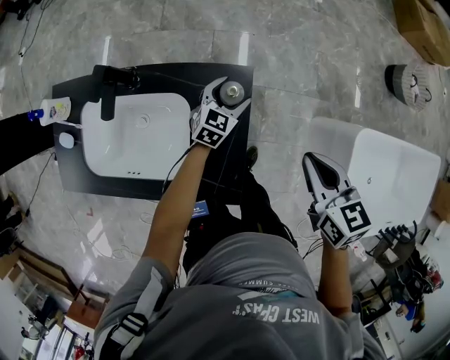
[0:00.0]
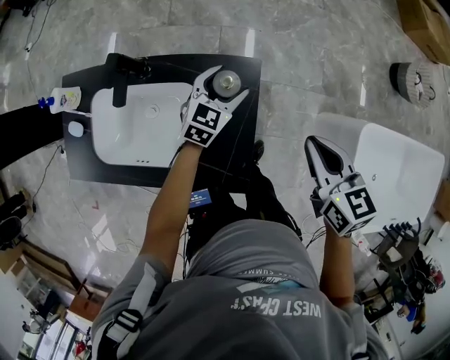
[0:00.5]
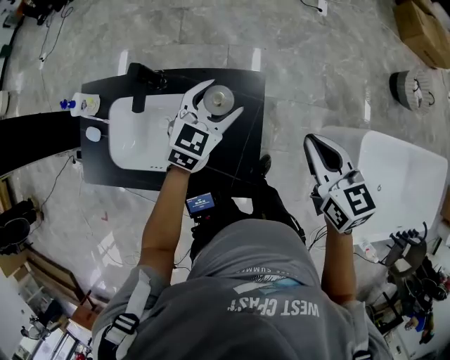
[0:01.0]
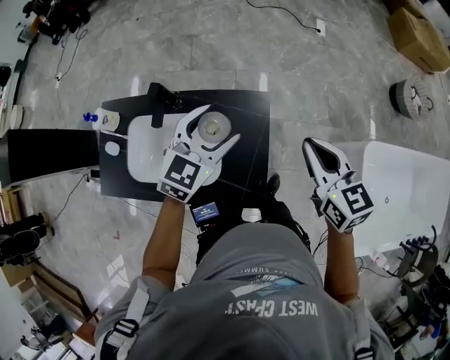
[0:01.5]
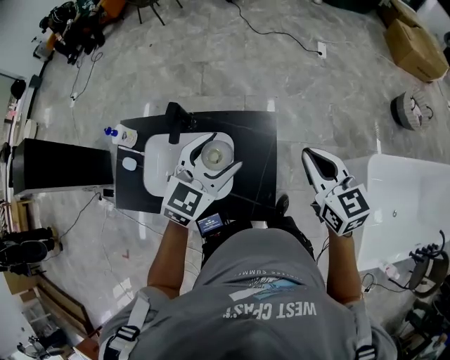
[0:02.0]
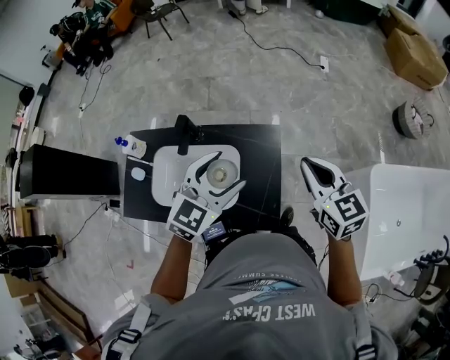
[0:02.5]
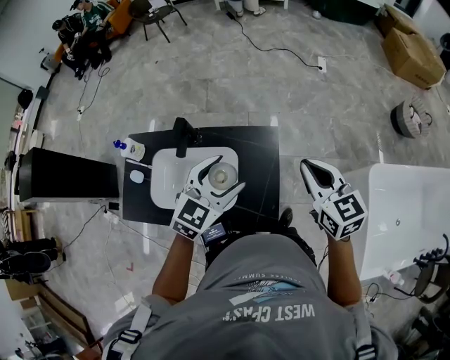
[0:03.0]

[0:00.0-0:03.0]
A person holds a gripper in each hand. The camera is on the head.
0:00.0 to 0:01.5: The right gripper moves upward and to the left, roughly 10 cm; the left gripper travels upward by some 25 cm.
0:01.5 to 0:03.0: The left gripper travels backward by some 5 cm.

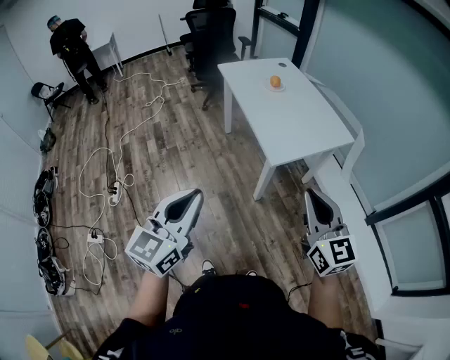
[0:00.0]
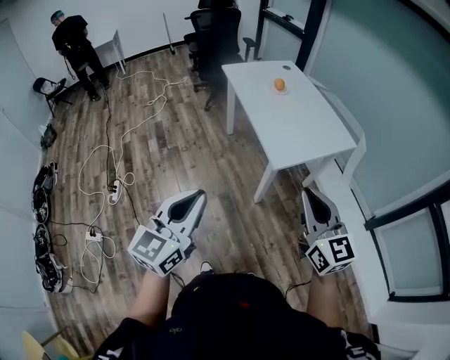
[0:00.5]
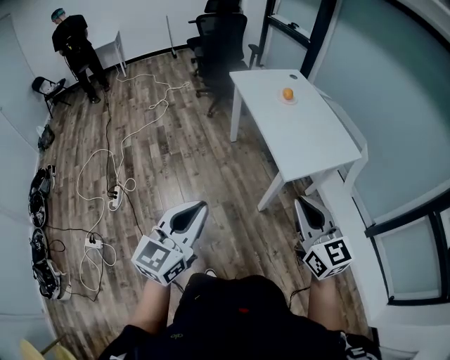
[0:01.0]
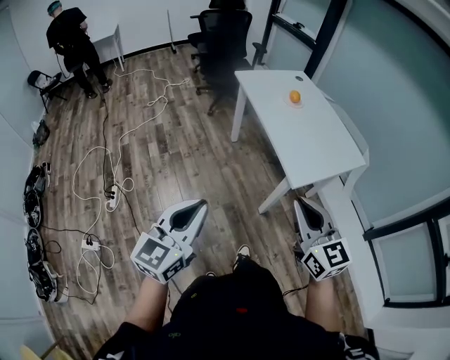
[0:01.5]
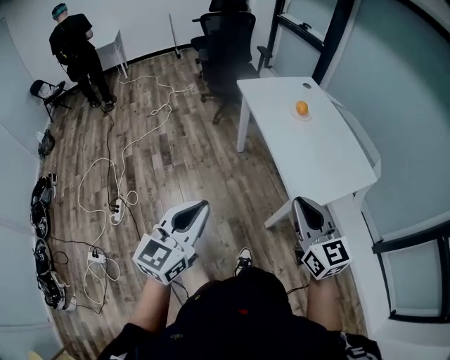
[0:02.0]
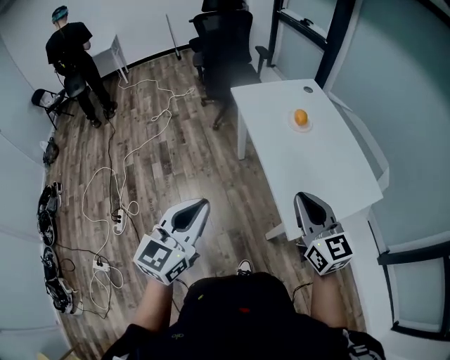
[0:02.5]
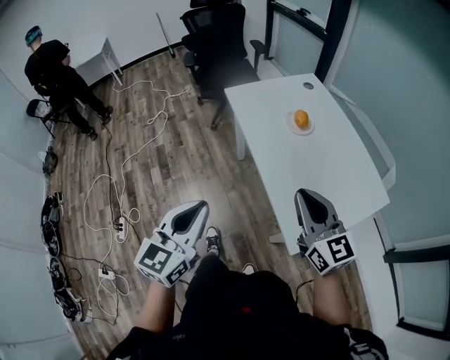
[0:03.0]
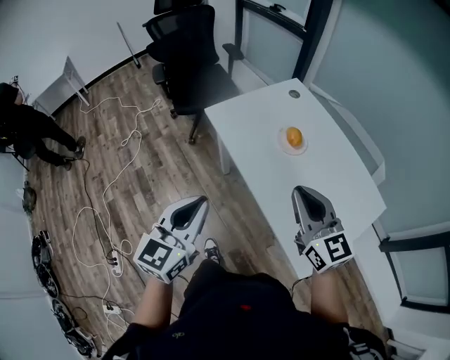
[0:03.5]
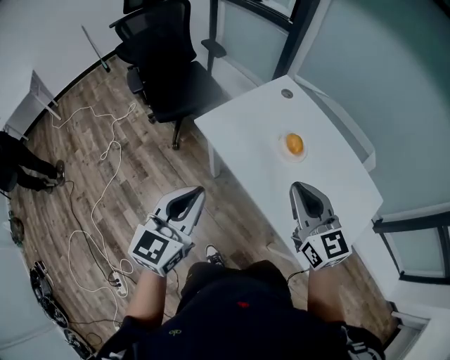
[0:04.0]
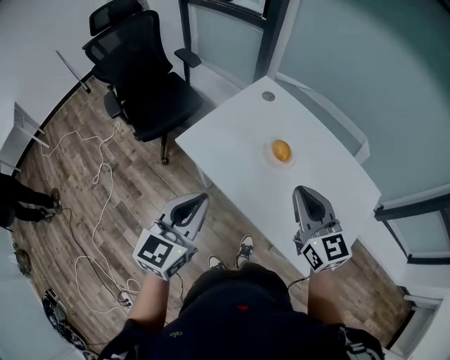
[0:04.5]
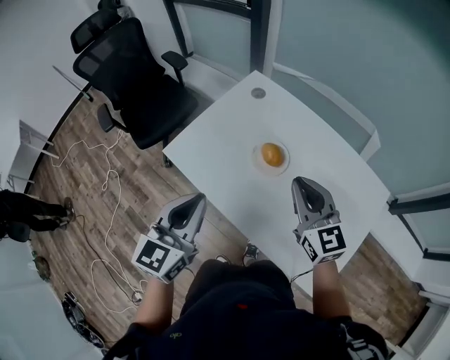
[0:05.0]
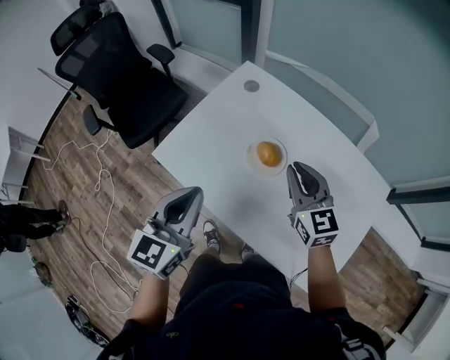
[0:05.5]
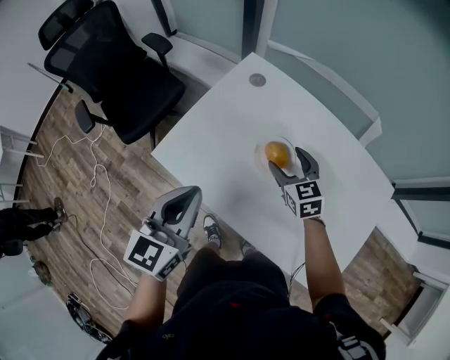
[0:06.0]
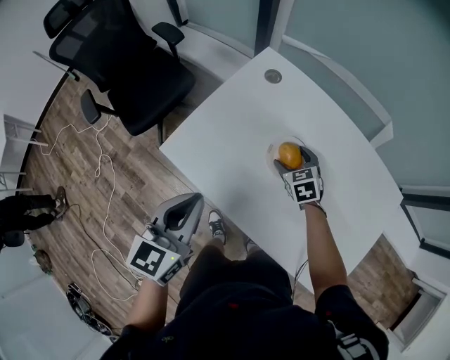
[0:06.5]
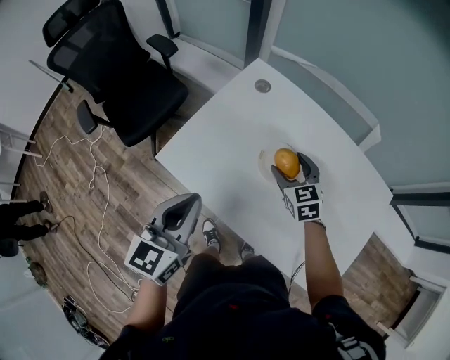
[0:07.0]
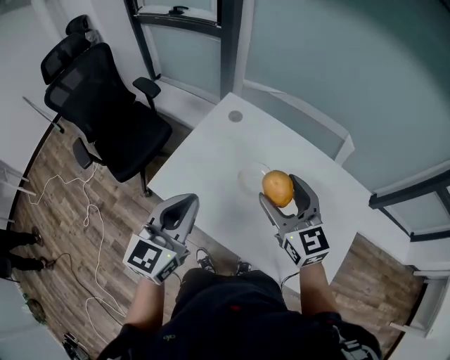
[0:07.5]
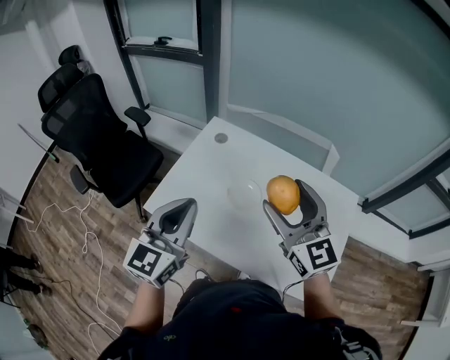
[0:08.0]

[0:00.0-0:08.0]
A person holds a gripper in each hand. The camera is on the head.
0:00.0 to 0:02.0: The grippers both shift forward and to the left by about 25 cm.
0:02.0 to 0:04.0: The pair of grippers is taken forward, about 60 cm.
0:04.0 to 0:06.0: The left gripper heads forward, covering about 25 cm; the right gripper is displaced forward and downward by roughly 40 cm, rotates some 30 degrees, and opens its fingers.
0:06.0 to 0:08.0: The left gripper shifts some 15 cm upward; the right gripper moves upward and backward, some 35 cm, and angles its fingers upward, by about 30 degrees.

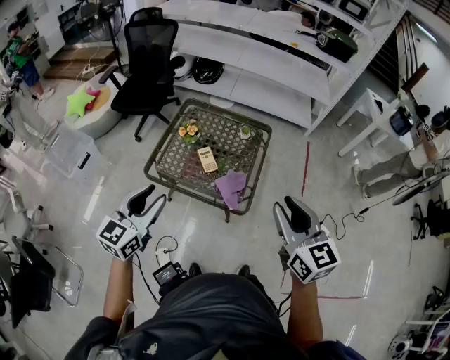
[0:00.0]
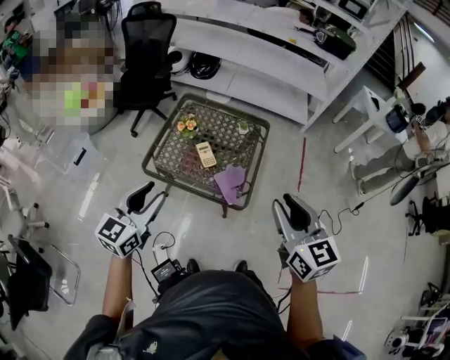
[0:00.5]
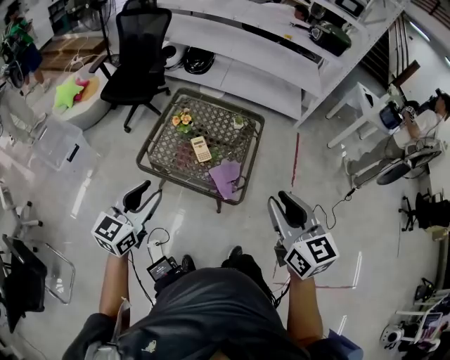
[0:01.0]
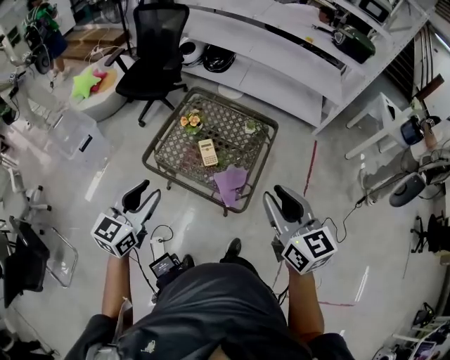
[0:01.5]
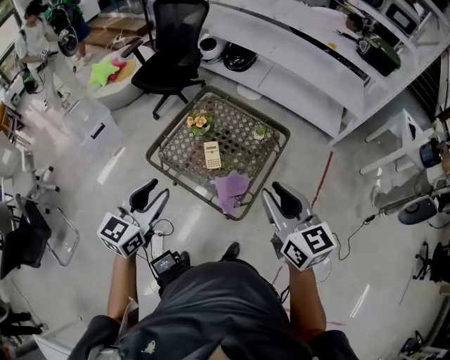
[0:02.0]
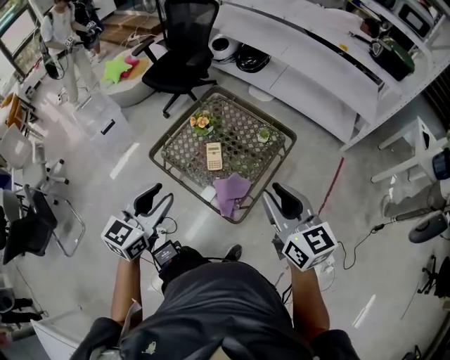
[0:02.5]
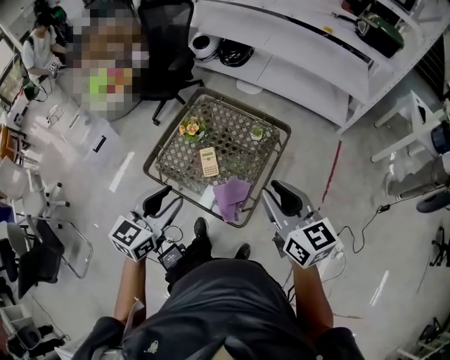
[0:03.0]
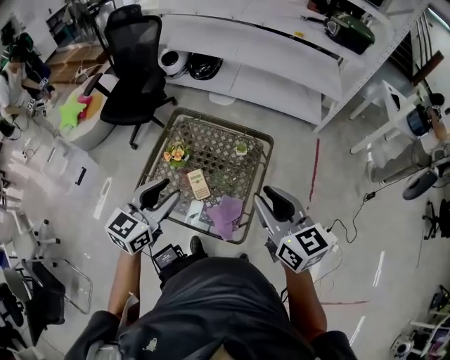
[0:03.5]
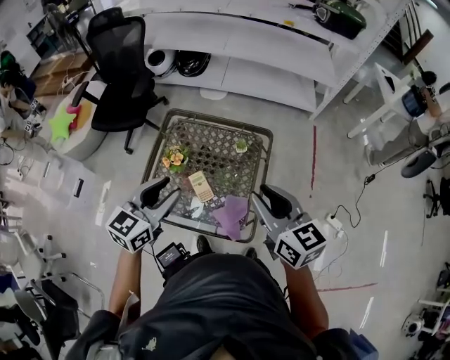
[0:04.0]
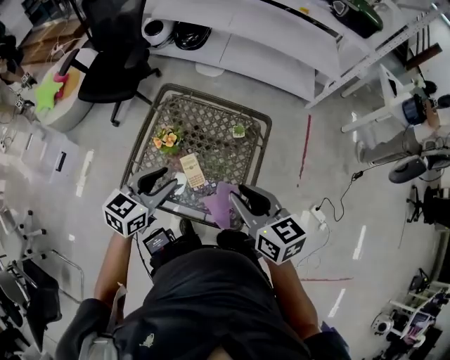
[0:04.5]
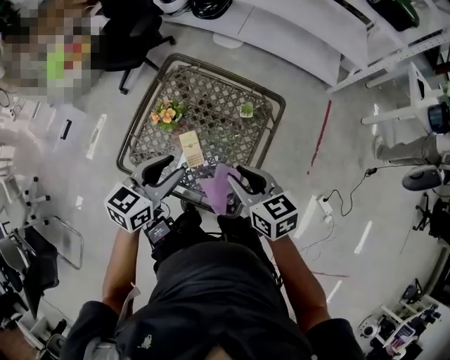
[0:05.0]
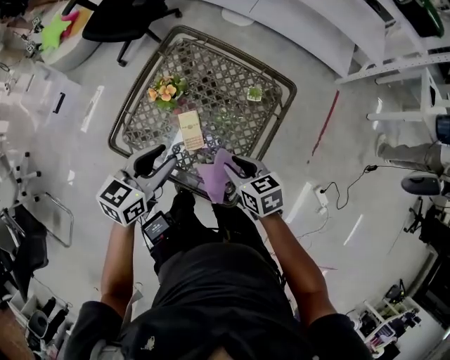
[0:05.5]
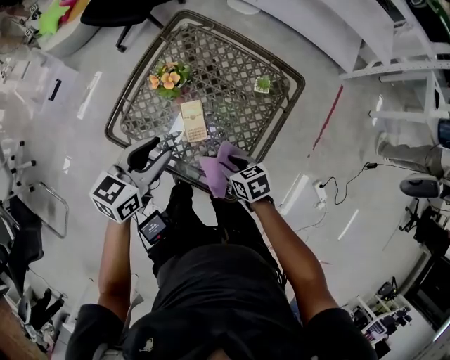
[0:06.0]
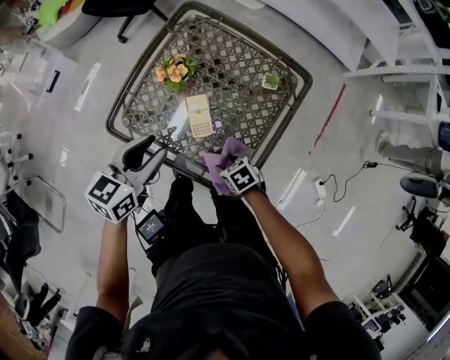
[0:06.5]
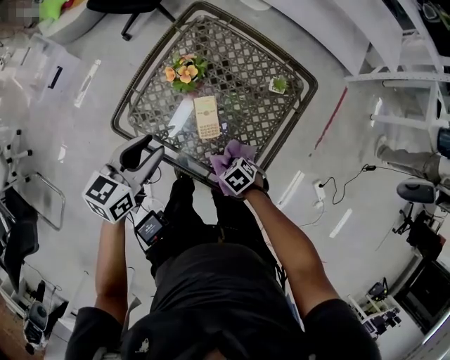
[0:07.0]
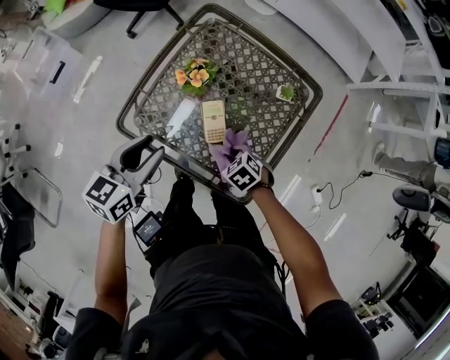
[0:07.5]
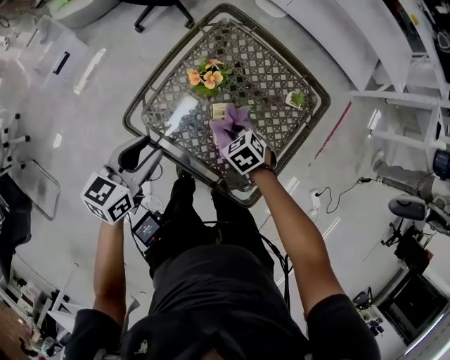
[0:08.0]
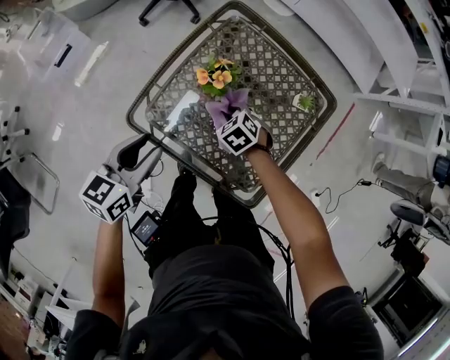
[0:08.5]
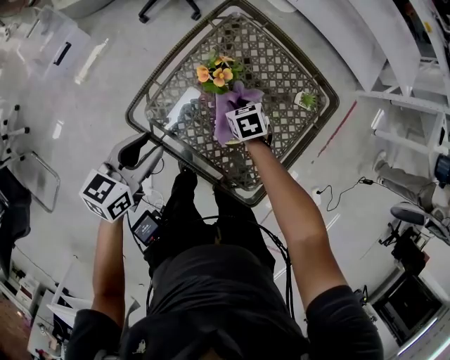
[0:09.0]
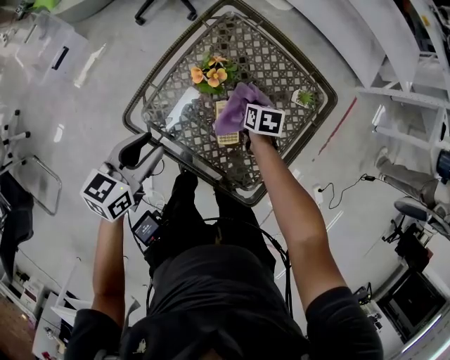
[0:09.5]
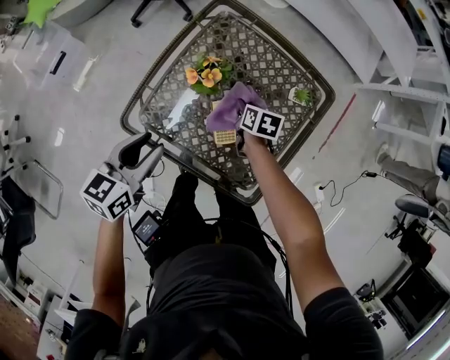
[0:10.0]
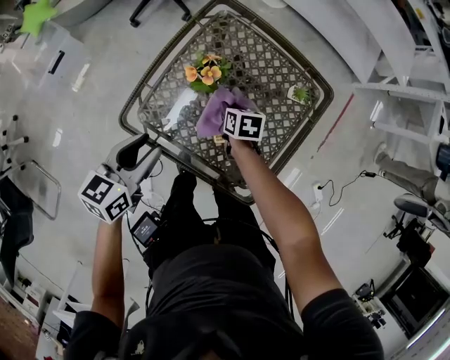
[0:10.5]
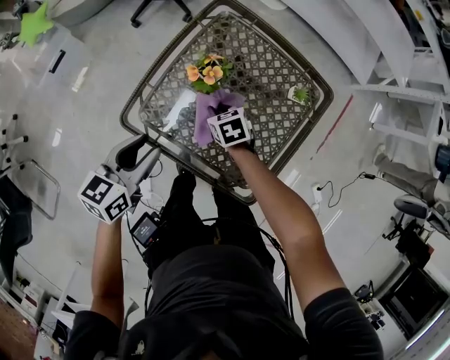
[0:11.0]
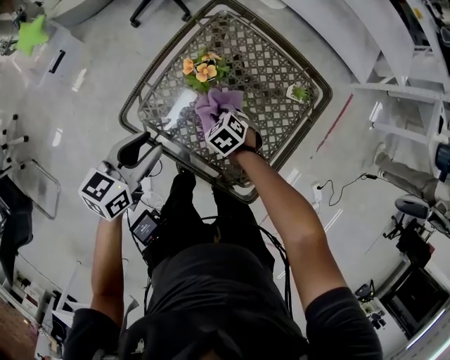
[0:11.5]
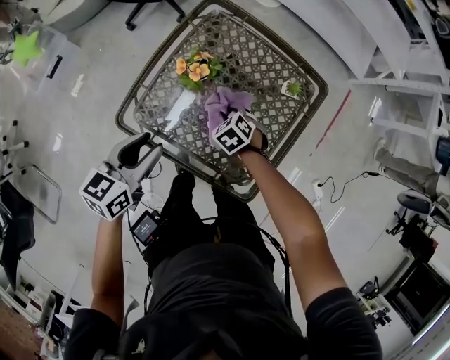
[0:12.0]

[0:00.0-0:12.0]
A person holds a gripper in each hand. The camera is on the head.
0:00.0 to 0:02.0: The left gripper is displaced to the right and forward by about 10 cm, while the right gripper goes approximately 15 cm forward.
0:02.0 to 0:04.0: The right gripper shifts approximately 15 cm forward, while the left gripper heads forward, covering approximately 20 cm, and changes its angle by roughly 20 degrees.
0:04.0 to 0:06.0: The left gripper goes approximately 20 cm downward, and changes its angle by roughly 20 degrees, while the right gripper goes approximately 40 cm downward, and tips its fingers downward by some 40 degrees.
0:06.0 to 0:08.0: The right gripper goes downward and returns, roughly 10 cm each way, and changes its angle by approximately 30 degrees, while the left gripper shifts by approximately 15 cm.
0:08.0 to 0:10.0: The right gripper moves forward and to the right, some 10 cm, and rotates around the line of its fingers by some 60 degrees, clockwise from behind.
0:10.0 to 0:12.0: The right gripper goes approximately 5 cm backward, and twists some 60 degrees counterclockwise, seen from behind.

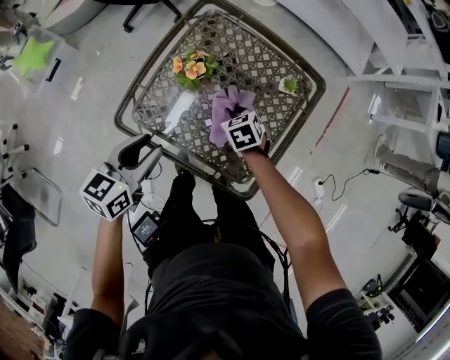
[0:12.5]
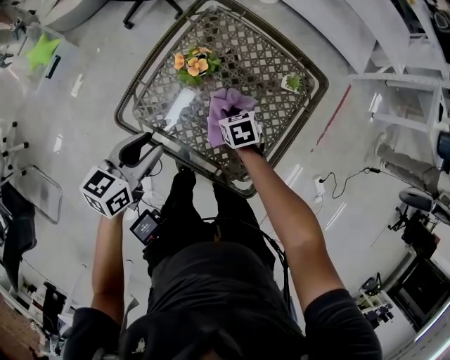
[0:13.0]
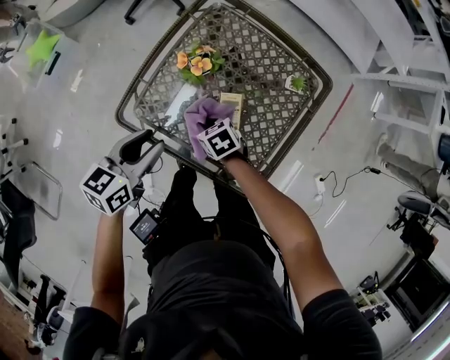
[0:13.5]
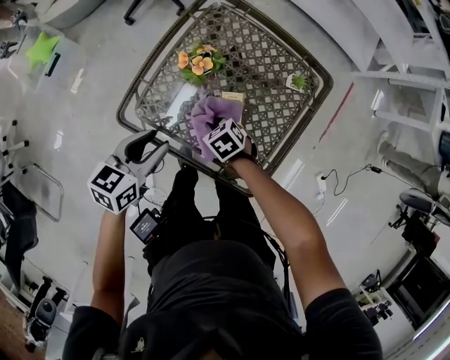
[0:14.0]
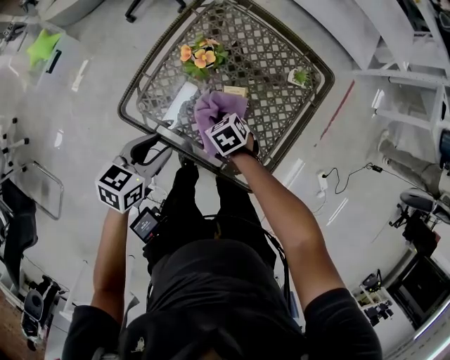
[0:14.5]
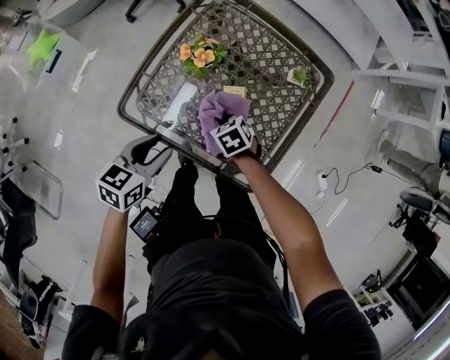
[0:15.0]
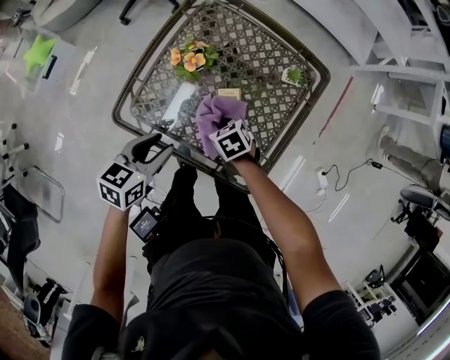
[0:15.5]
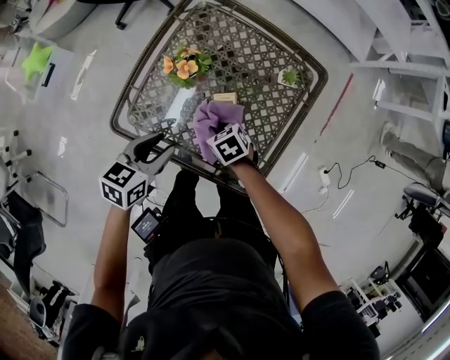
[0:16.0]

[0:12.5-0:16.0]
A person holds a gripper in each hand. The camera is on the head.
0:12.5 to 0:14.5: The right gripper goes about 10 cm to the left and backward, while the left gripper shifts roughly 5 cm downward.
0:14.5 to 0:16.0: The left gripper moves about 5 cm.
